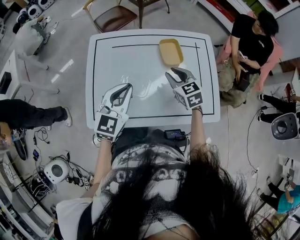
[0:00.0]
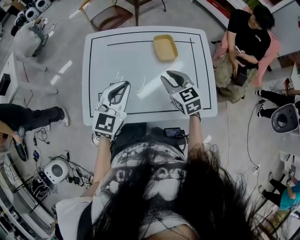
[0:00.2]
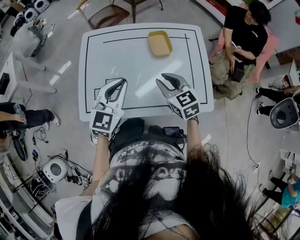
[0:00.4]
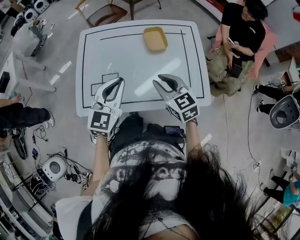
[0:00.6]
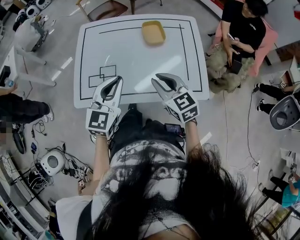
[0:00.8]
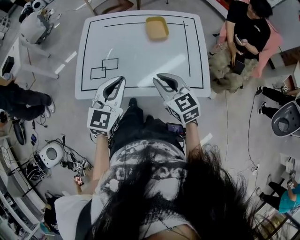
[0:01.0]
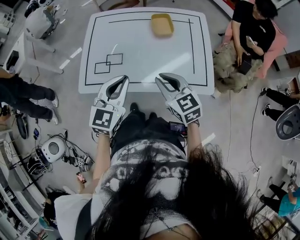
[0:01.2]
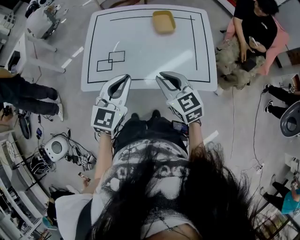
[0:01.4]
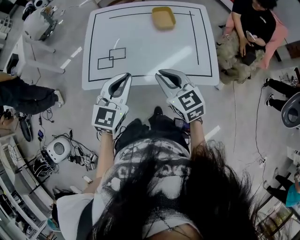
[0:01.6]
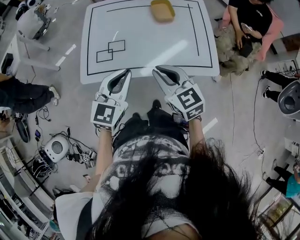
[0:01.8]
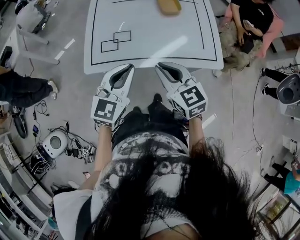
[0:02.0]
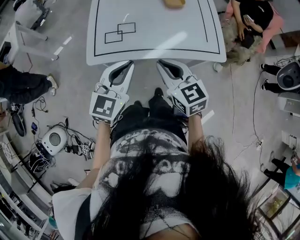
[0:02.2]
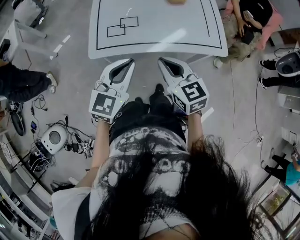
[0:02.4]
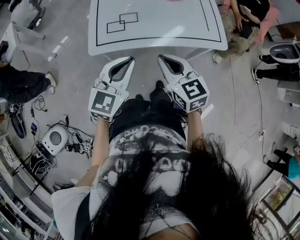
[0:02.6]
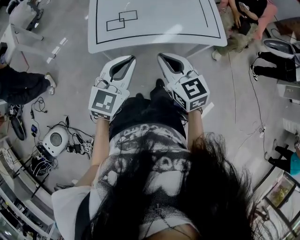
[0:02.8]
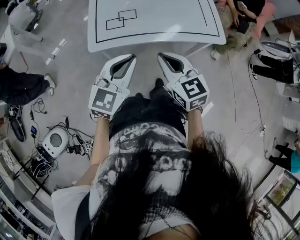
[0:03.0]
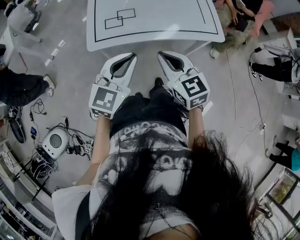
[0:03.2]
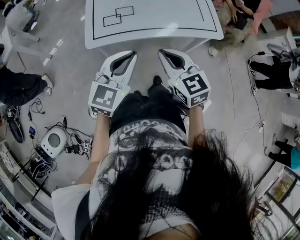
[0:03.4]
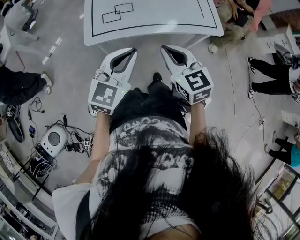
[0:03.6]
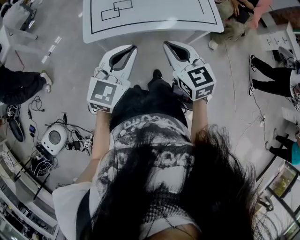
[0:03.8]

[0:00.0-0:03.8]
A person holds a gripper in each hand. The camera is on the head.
0:00.0 to 0:01.2: The right gripper moves backward, some 25 cm. Meanwhile the left gripper shifts some 20 cm backward and to the right.
0:01.2 to 0:02.6: Both grippers move to the left and backward, some 25 cm.
0:02.6 to 0:03.8: The left gripper moves backward, approximately 5 cm; the right gripper moves approximately 5 cm.

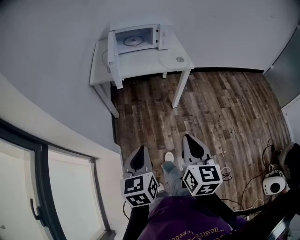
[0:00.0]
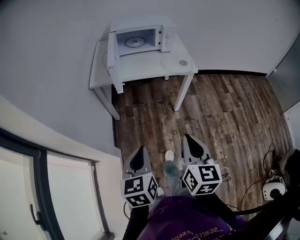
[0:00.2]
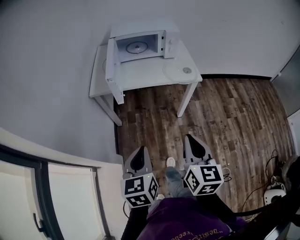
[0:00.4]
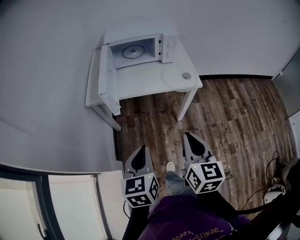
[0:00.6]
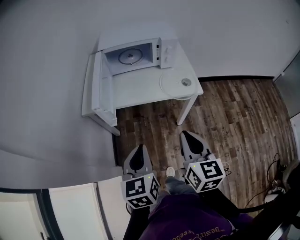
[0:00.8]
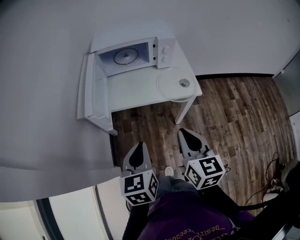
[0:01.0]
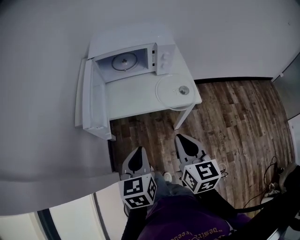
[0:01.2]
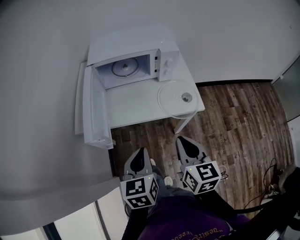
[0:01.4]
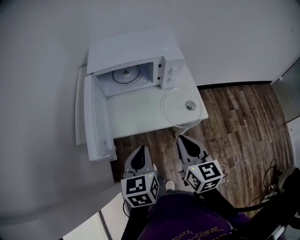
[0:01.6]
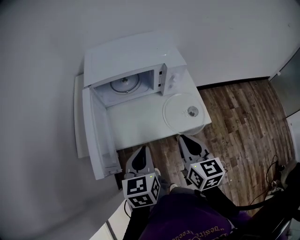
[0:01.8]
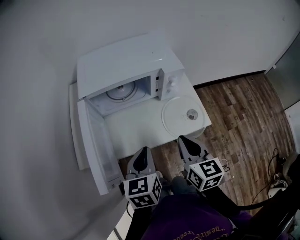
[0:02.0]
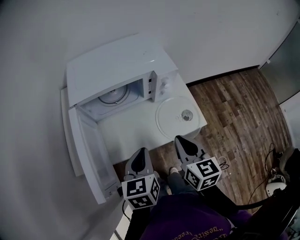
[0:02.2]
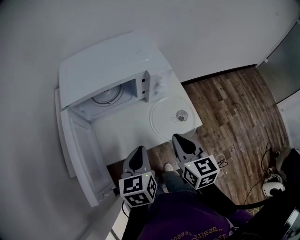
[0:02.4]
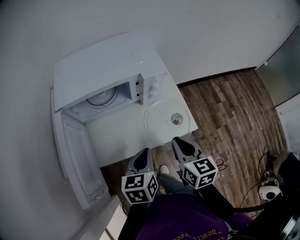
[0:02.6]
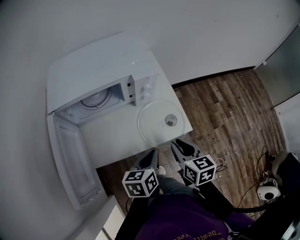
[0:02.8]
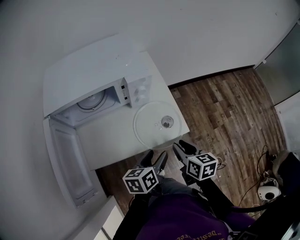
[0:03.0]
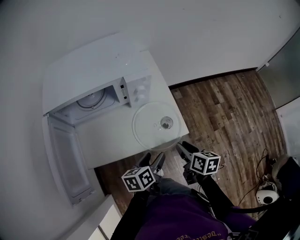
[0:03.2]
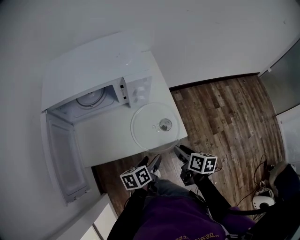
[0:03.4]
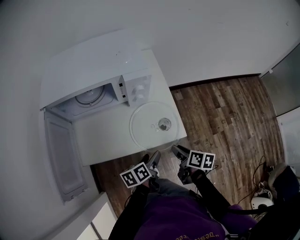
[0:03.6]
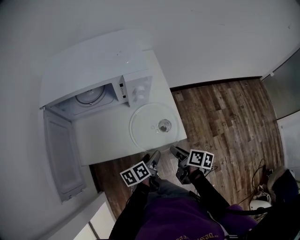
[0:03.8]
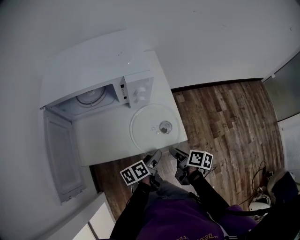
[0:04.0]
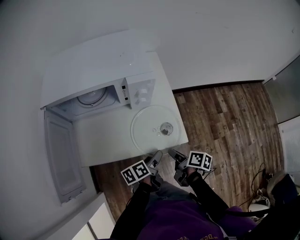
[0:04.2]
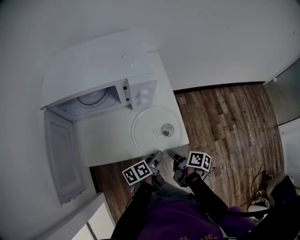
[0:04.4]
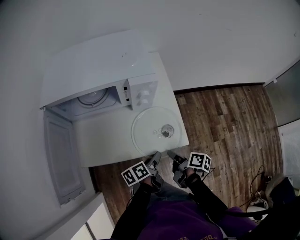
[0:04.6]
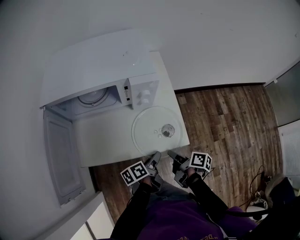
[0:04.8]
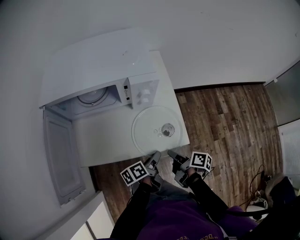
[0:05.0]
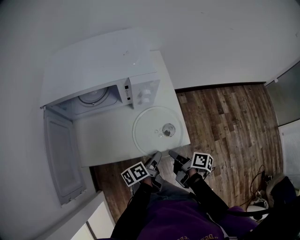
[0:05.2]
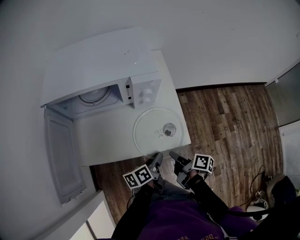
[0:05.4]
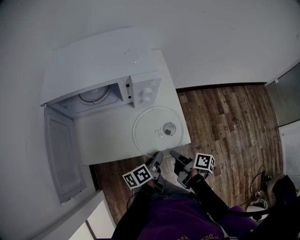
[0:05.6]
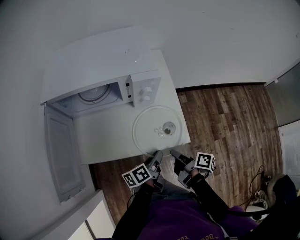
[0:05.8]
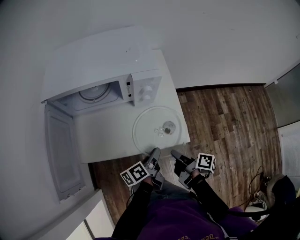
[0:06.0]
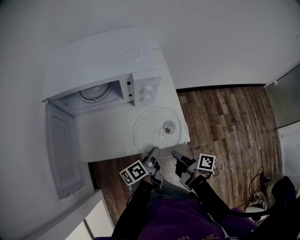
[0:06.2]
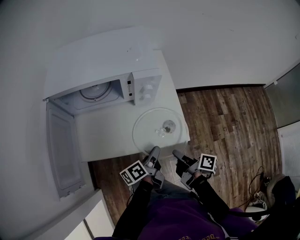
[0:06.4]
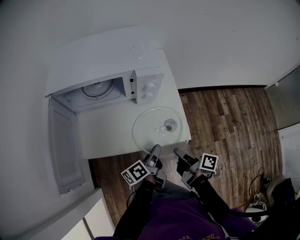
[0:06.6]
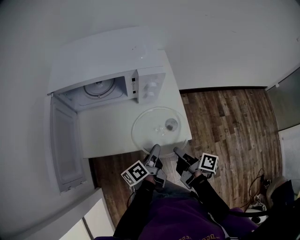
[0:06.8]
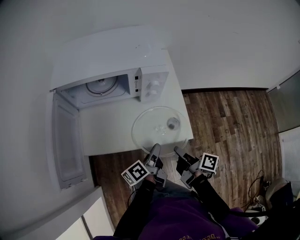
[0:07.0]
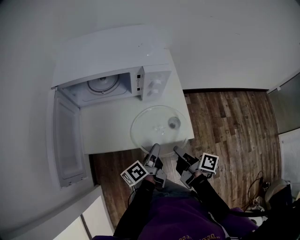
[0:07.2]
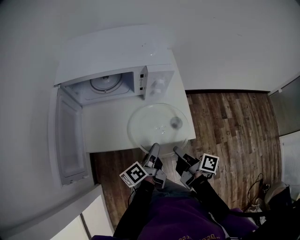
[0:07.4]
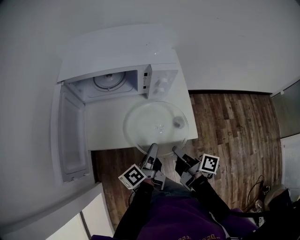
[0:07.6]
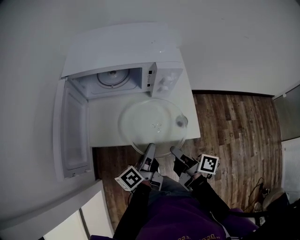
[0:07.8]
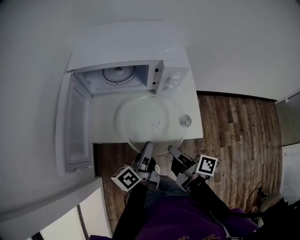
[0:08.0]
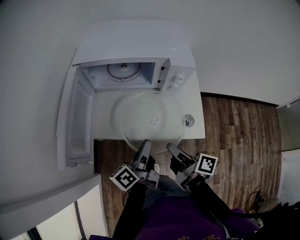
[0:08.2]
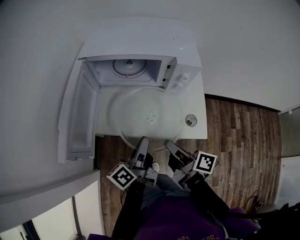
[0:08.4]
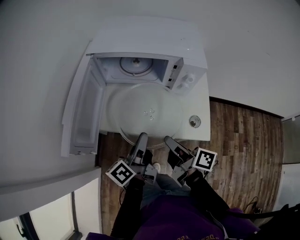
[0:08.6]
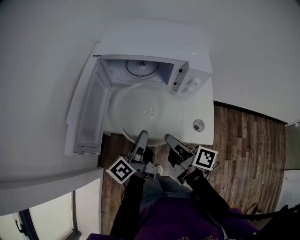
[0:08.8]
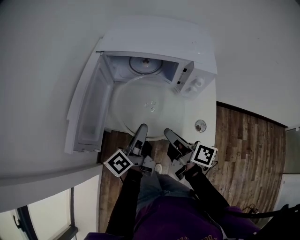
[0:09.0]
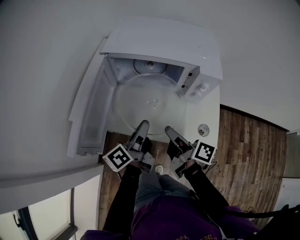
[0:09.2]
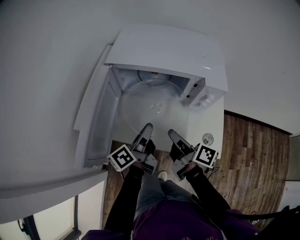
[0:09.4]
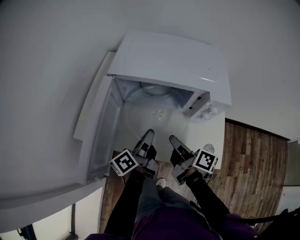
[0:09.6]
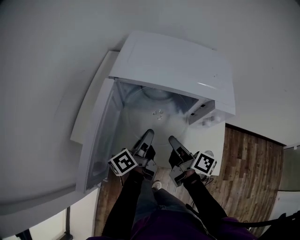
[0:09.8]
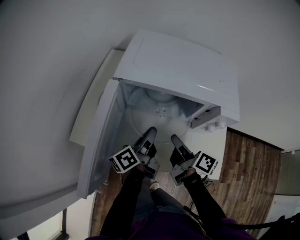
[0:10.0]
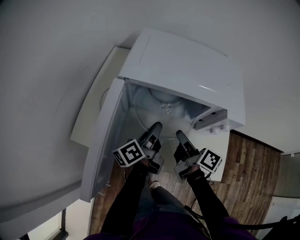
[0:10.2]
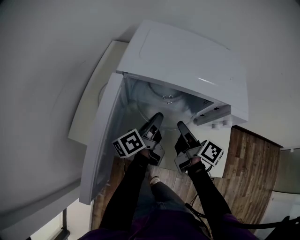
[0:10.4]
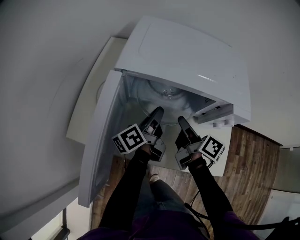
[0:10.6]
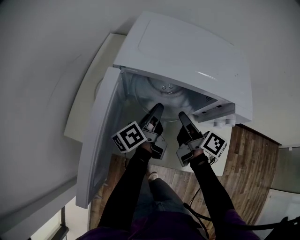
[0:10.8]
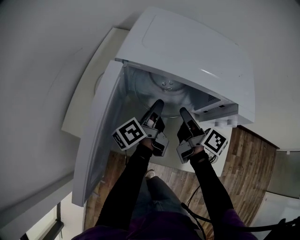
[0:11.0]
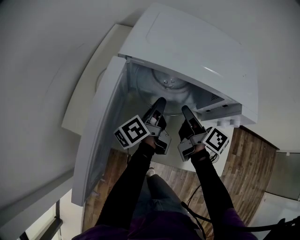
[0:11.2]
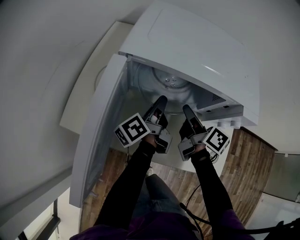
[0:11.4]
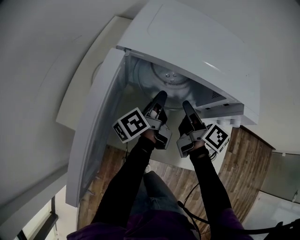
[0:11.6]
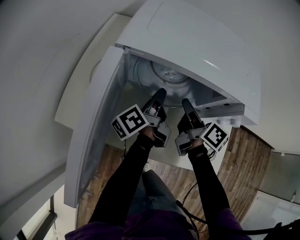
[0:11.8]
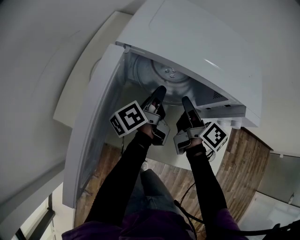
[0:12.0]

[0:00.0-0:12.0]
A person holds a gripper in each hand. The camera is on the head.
0:00.0 to 0:01.6: The pair of grippers is taken forward, approximately 40 cm.
0:01.6 to 0:03.0: The grippers both shift to the right, downward and forward by approximately 20 cm. The right gripper swivels roughly 20 degrees, and opens; the left gripper changes its angle by approximately 40 degrees, and opens.
0:03.0 to 0:04.4: Both grippers move downward, approximately 10 cm. The right gripper rotates around the line of its fingers by about 40 degrees, clockwise from behind, while the left gripper rotates about 30 degrees.
0:04.4 to 0:06.0: The left gripper closes.
0:06.0 to 0:07.6: The right gripper heads upward, covering roughly 5 cm. Meanwhile the left gripper travels to the left and upward by roughly 10 cm.
0:07.6 to 0:09.0: The left gripper travels to the left, upward and forward by approximately 15 cm, and turns by approximately 20 degrees. Meanwhile the right gripper shifts about 15 cm to the left, forward and upward, and swivels roughly 20 degrees.
0:09.0 to 0:10.4: Both grippers travel together forward, some 20 cm.
0:10.4 to 0:12.0: The left gripper changes place by some 5 cm. Meanwhile the right gripper is displaced forward by roughly 5 cm.

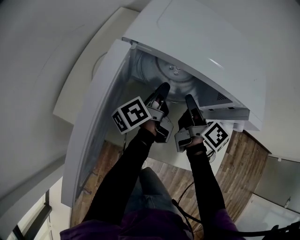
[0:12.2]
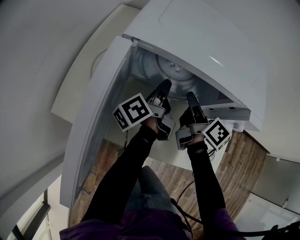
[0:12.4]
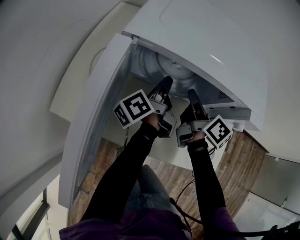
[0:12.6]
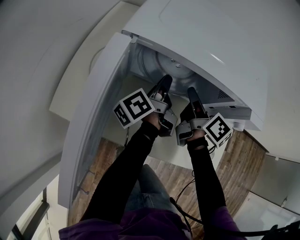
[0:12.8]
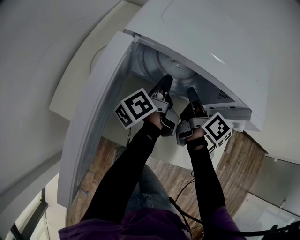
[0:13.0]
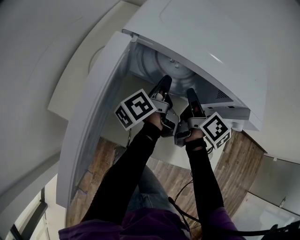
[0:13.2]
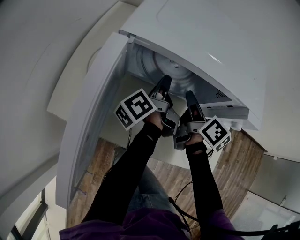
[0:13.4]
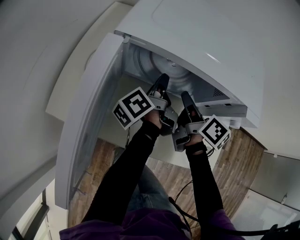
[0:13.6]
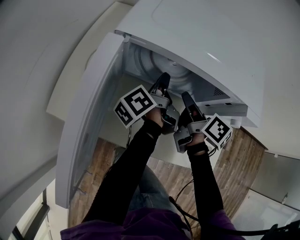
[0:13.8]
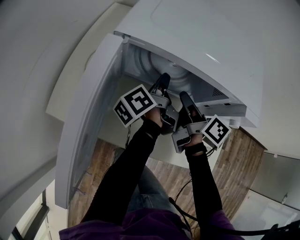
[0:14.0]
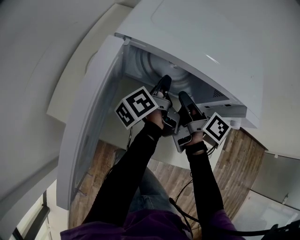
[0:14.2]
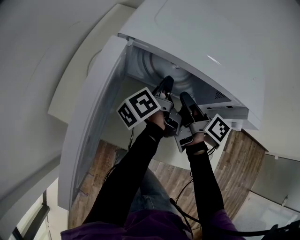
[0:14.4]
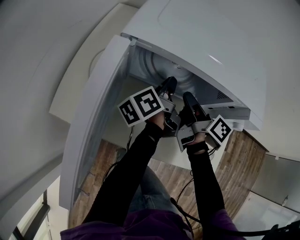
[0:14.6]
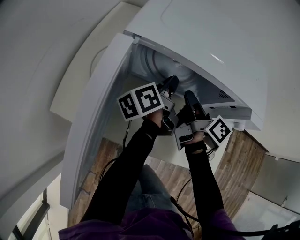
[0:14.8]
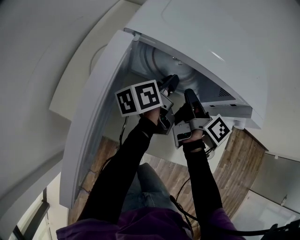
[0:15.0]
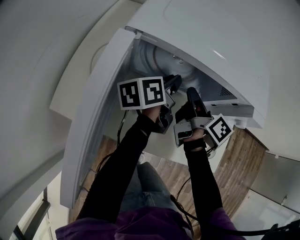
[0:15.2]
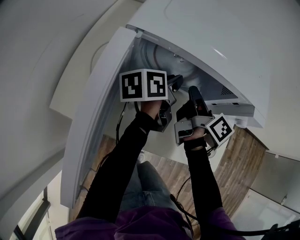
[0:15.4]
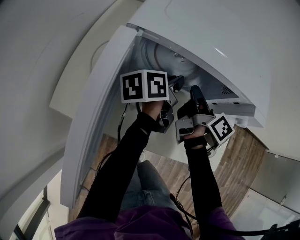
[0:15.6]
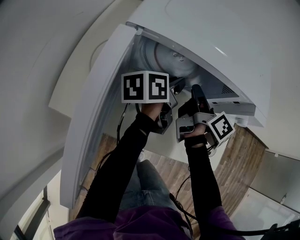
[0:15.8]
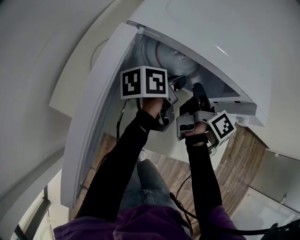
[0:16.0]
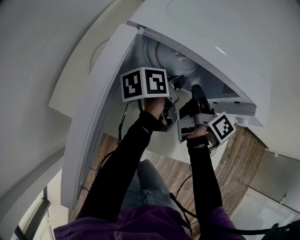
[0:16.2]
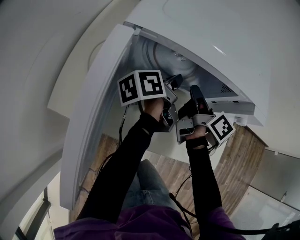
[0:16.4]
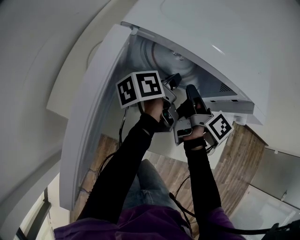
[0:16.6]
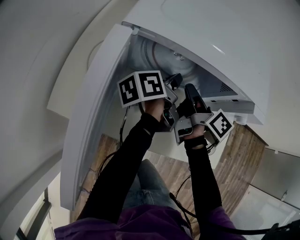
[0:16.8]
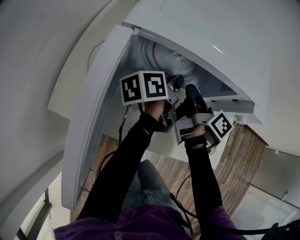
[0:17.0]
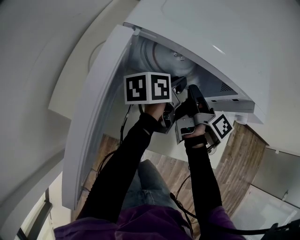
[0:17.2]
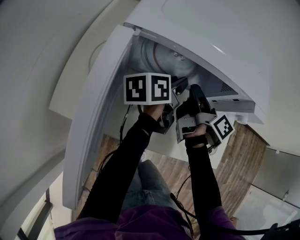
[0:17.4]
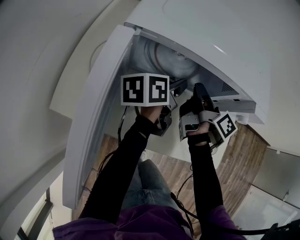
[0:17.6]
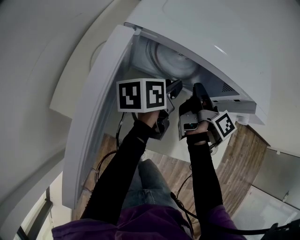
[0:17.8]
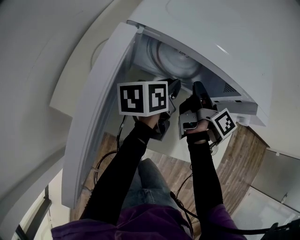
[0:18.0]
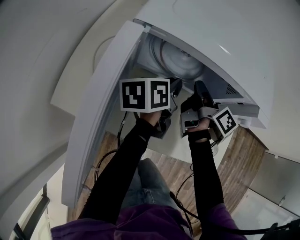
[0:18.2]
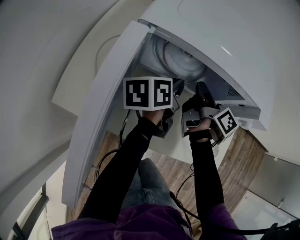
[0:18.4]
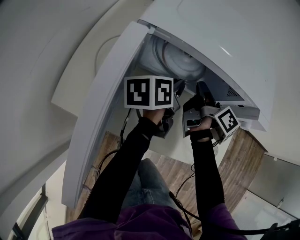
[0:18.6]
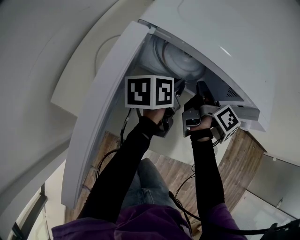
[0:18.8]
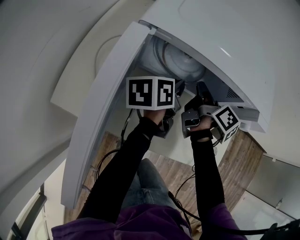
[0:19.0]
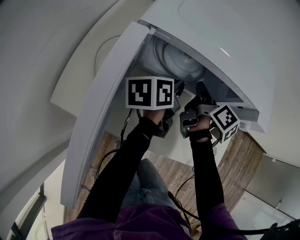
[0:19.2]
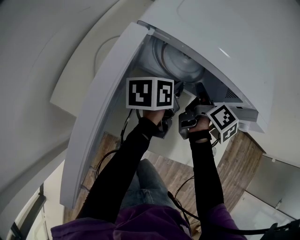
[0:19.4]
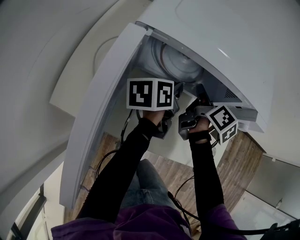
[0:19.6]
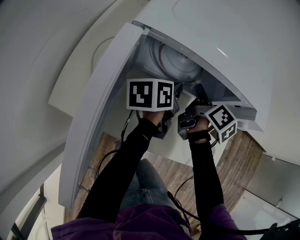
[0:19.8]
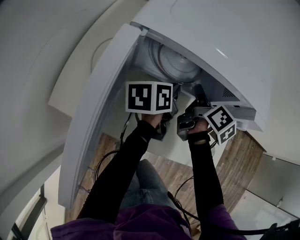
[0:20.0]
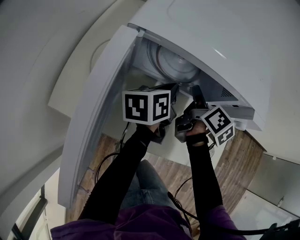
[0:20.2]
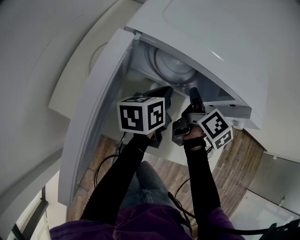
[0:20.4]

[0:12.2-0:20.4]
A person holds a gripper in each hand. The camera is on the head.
0:12.2 to 0:13.8: The grippers move only a little.
0:13.8 to 0:15.4: The left gripper changes its angle by approximately 40 degrees.
0:15.4 to 0:20.4: There are only small adjustments of the grippers.
